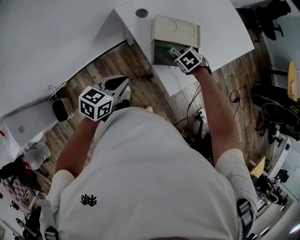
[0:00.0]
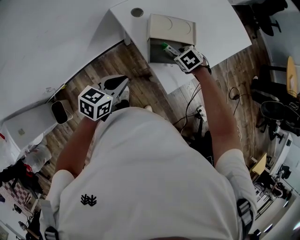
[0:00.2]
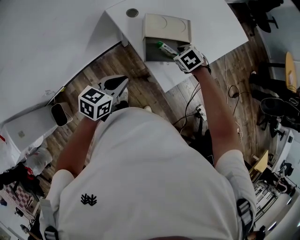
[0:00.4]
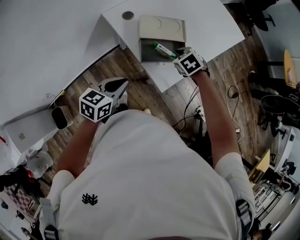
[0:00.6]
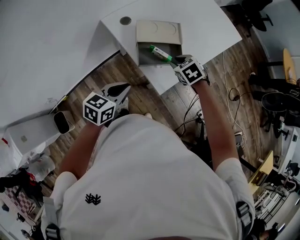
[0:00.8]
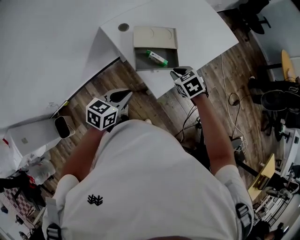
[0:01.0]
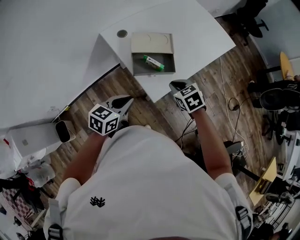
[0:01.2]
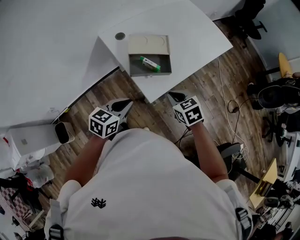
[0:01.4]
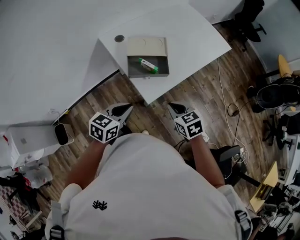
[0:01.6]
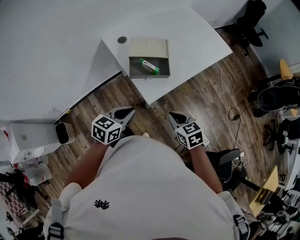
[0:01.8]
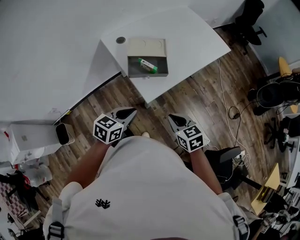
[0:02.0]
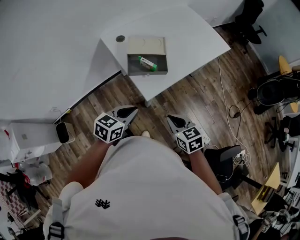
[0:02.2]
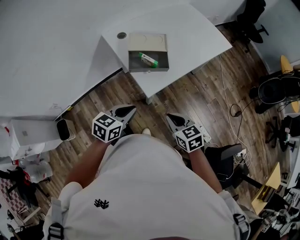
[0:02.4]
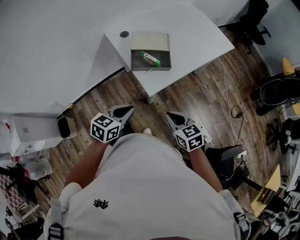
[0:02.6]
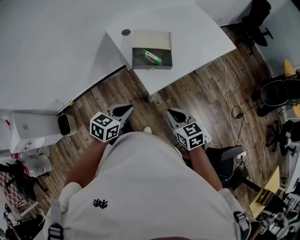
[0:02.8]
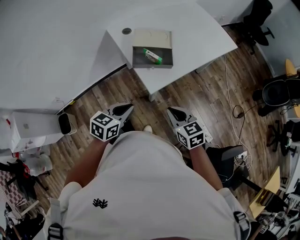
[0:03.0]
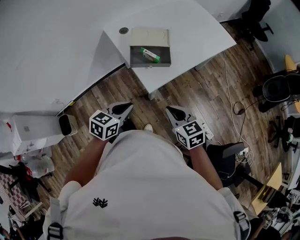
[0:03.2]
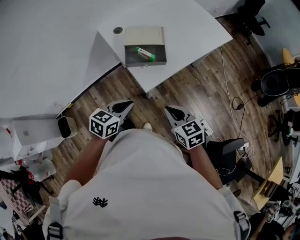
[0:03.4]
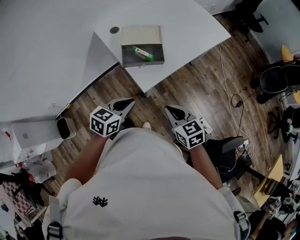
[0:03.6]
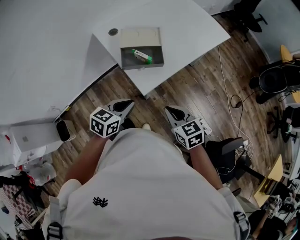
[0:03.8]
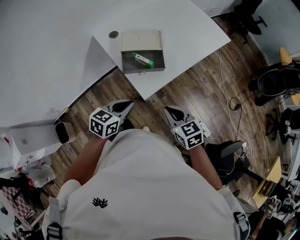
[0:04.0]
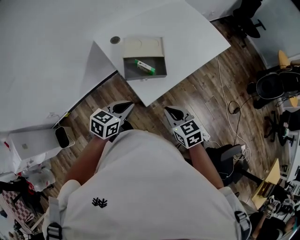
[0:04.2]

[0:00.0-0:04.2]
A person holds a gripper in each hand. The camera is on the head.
0:00.0 to 0:01.4: The left gripper shifts by about 15 cm. Meanwhile the right gripper shifts by approximately 20 cm, turns by some 30 degrees, and closes up.
0:01.4 to 0:02.8: The right gripper travels backward by some 10 cm. The left gripper travels backward by approximately 10 cm.
0:02.8 to 0:04.2: Both grippers move forward, about 5 cm.

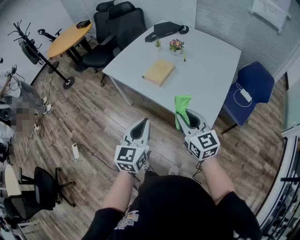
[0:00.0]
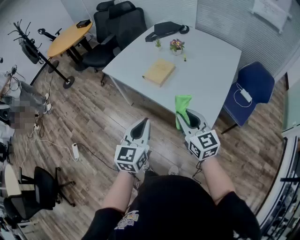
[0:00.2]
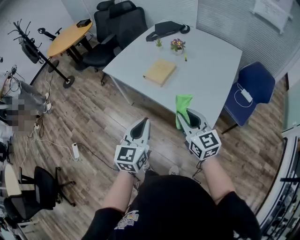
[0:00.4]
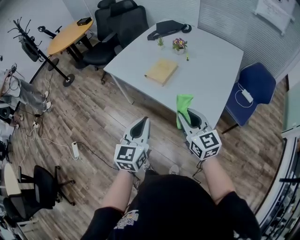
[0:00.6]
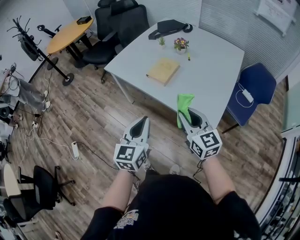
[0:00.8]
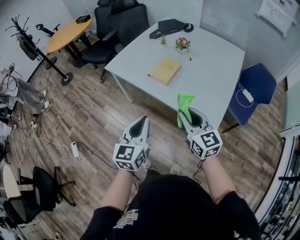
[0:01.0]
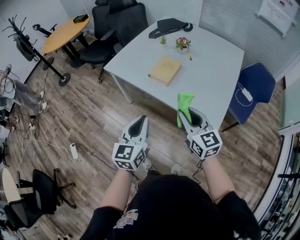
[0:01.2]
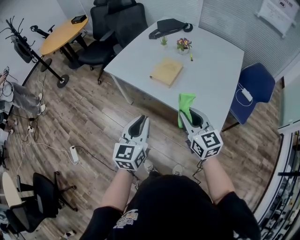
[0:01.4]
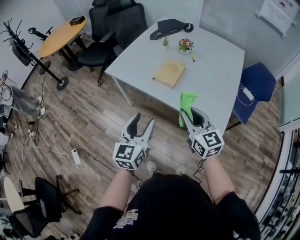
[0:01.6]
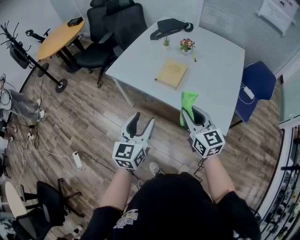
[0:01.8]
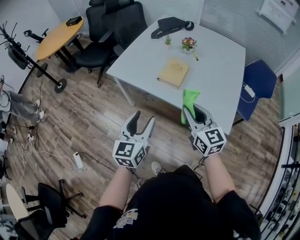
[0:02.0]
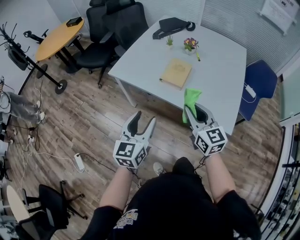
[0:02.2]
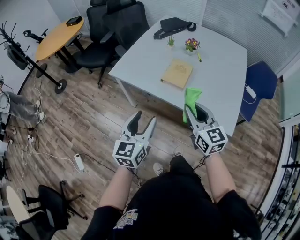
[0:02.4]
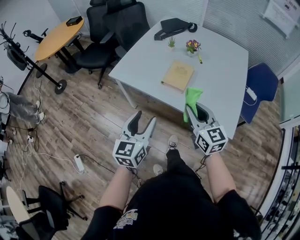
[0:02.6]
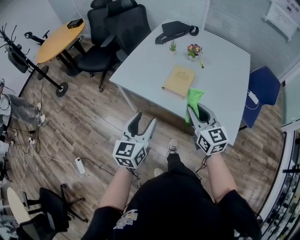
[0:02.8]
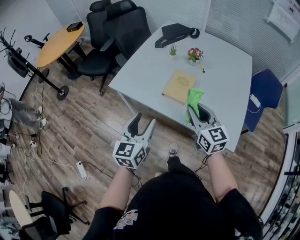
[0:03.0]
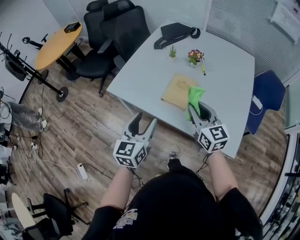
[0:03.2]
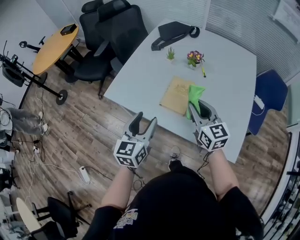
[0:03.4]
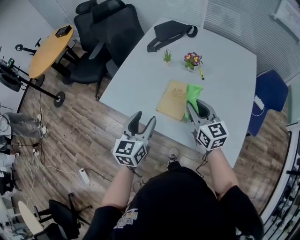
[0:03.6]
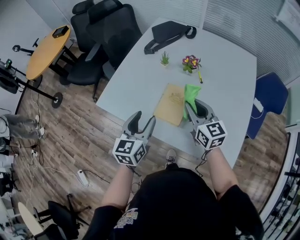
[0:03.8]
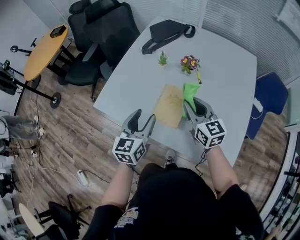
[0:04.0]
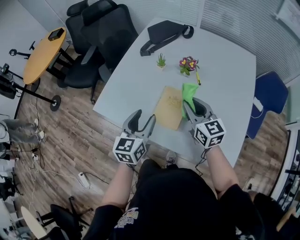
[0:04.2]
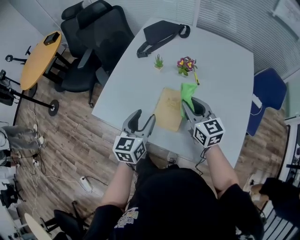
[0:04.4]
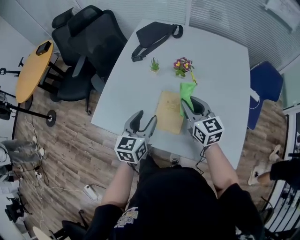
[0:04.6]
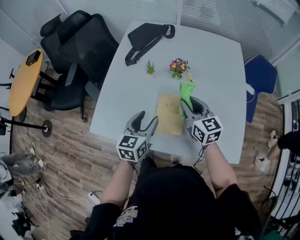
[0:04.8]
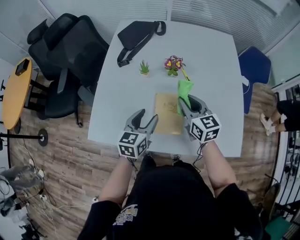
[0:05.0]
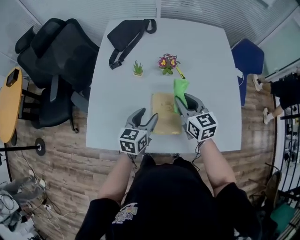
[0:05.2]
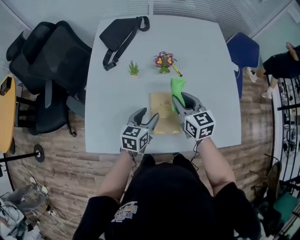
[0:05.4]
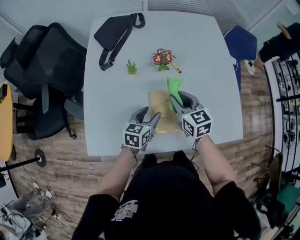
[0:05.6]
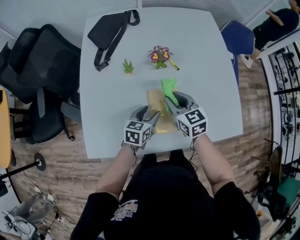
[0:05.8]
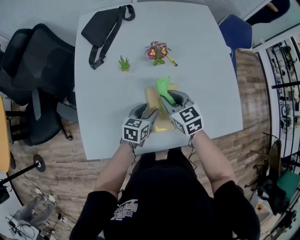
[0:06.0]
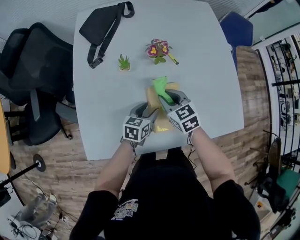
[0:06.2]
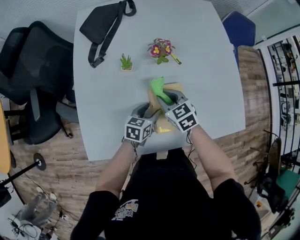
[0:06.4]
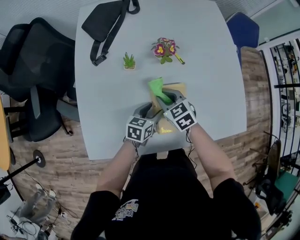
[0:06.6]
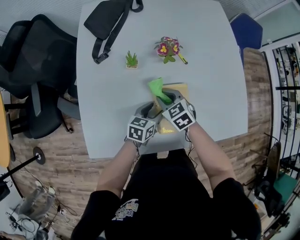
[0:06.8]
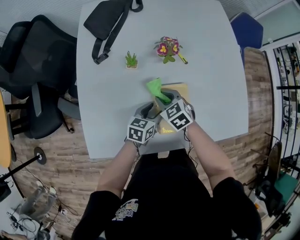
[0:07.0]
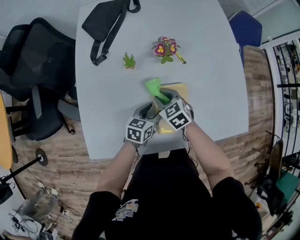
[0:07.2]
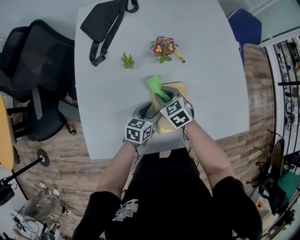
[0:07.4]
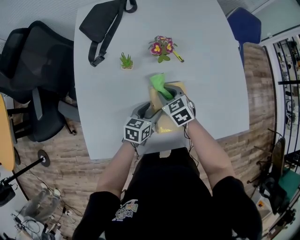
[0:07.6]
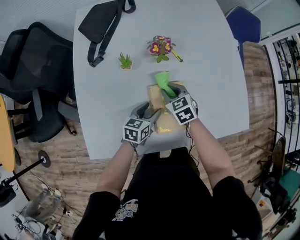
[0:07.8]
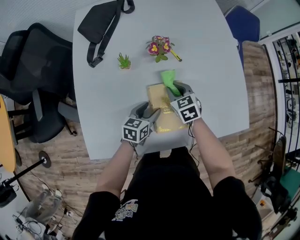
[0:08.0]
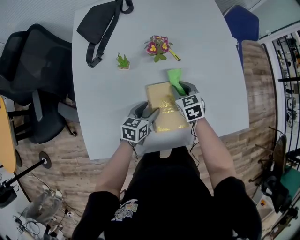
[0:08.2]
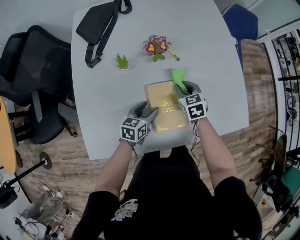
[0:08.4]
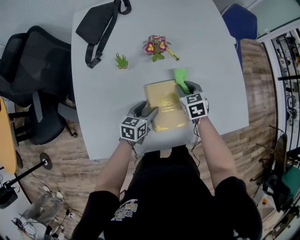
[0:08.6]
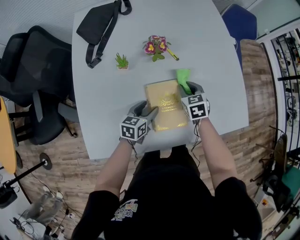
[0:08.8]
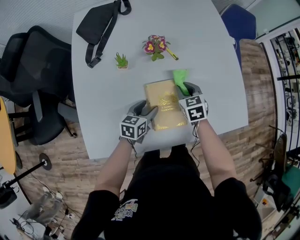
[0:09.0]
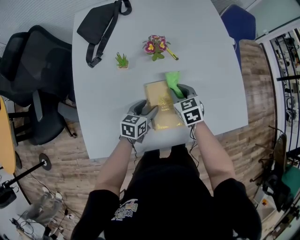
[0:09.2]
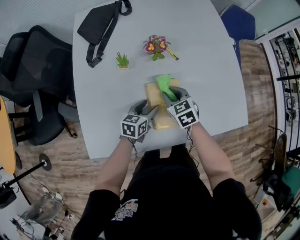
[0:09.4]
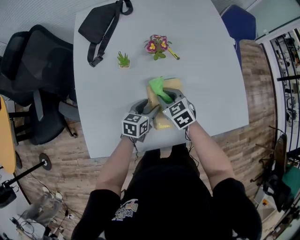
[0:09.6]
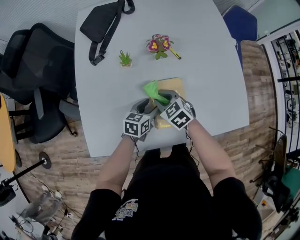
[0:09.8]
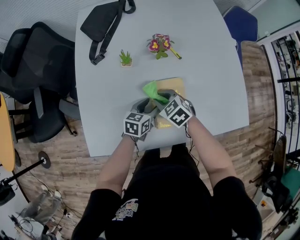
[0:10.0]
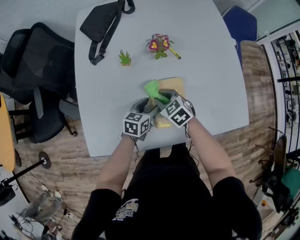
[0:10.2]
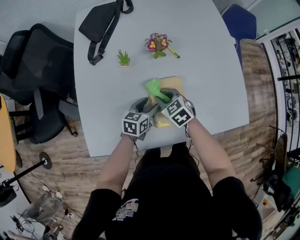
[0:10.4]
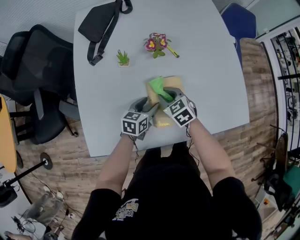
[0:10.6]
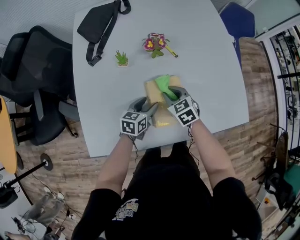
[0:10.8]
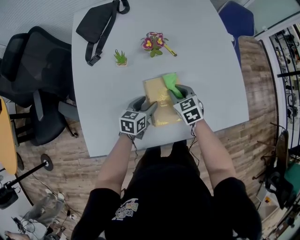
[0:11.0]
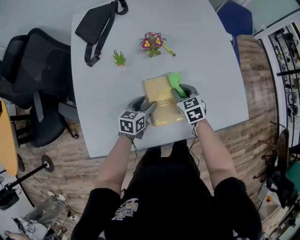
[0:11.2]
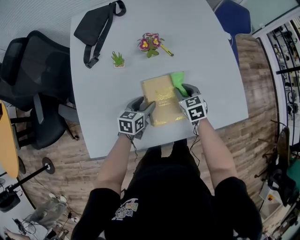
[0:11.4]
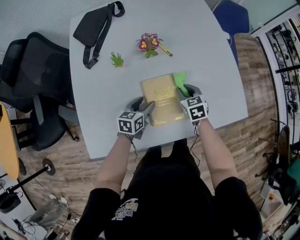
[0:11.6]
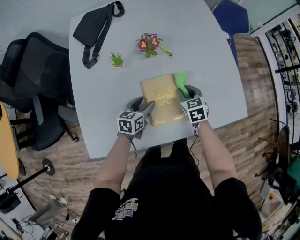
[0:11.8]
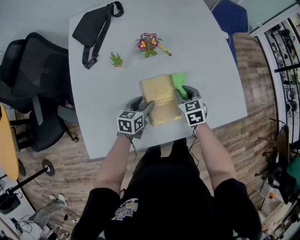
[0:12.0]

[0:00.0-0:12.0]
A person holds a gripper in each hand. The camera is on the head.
0:00.0 to 0:01.6: The grippers both shift to the left and forward by approximately 10 cm. The left gripper opens its fingers.
0:01.6 to 0:03.0: The right gripper shifts some 15 cm forward; the left gripper travels forward and to the left by approximately 15 cm.
0:03.0 to 0:04.4: Both grippers travel together forward, about 20 cm.
0:04.4 to 0:06.0: The right gripper shifts roughly 10 cm downward, and changes its angle by about 30 degrees. Meanwhile the left gripper goes some 20 cm downward, and rotates about 50 degrees.
0:06.0 to 0:07.6: The right gripper heads downward, covering some 10 cm.
0:07.6 to 0:09.0: The right gripper shifts about 10 cm to the right.
0:09.0 to 0:10.4: The right gripper travels to the left and backward by about 10 cm, and changes its angle by some 20 degrees.
0:10.4 to 0:12.0: The right gripper heads to the right, covering roughly 15 cm, and turns by about 30 degrees.

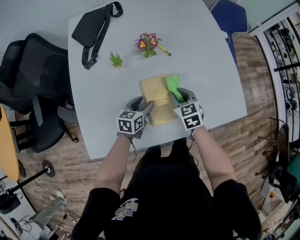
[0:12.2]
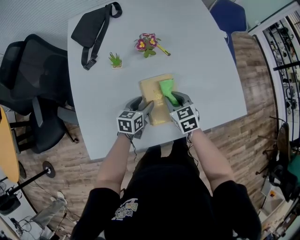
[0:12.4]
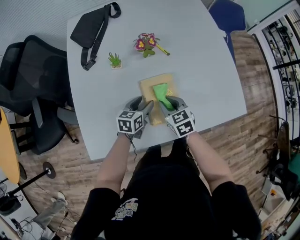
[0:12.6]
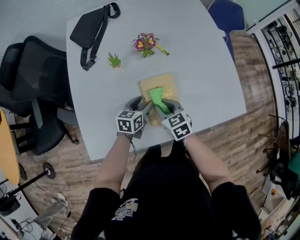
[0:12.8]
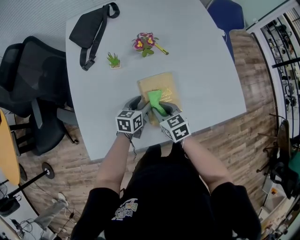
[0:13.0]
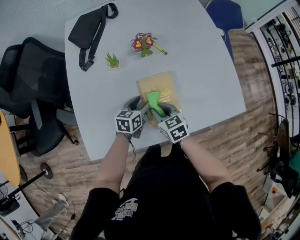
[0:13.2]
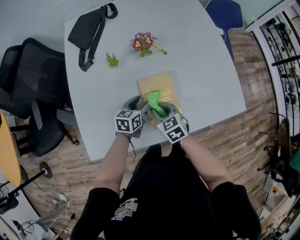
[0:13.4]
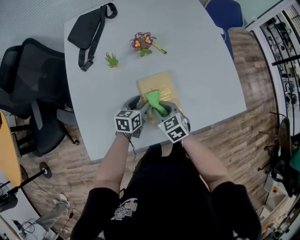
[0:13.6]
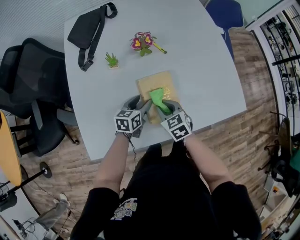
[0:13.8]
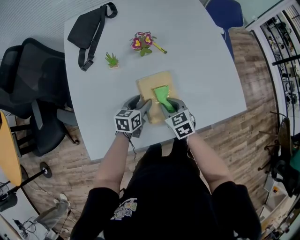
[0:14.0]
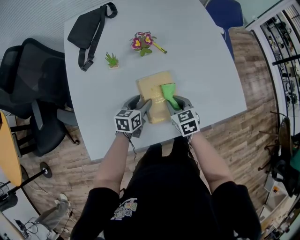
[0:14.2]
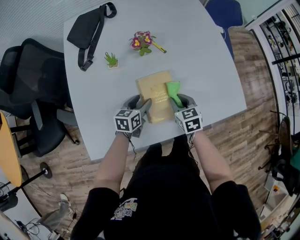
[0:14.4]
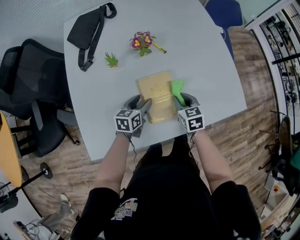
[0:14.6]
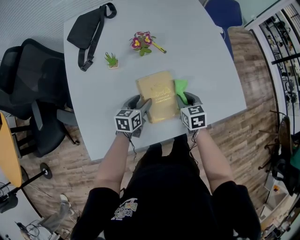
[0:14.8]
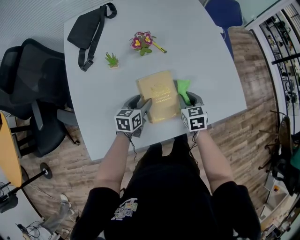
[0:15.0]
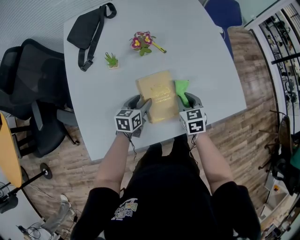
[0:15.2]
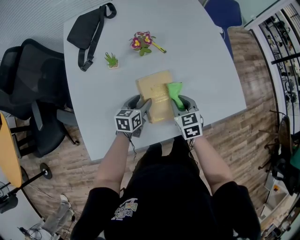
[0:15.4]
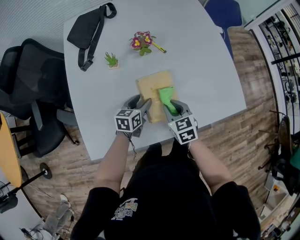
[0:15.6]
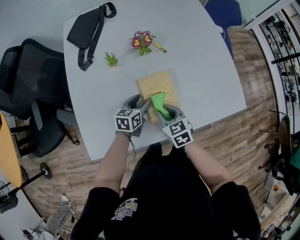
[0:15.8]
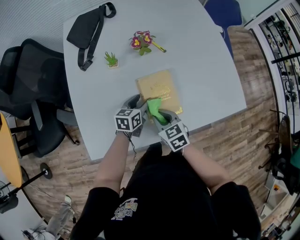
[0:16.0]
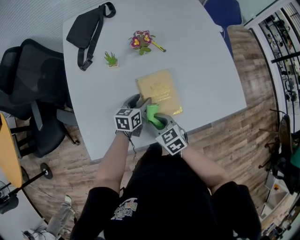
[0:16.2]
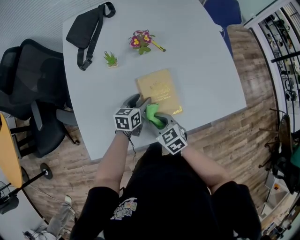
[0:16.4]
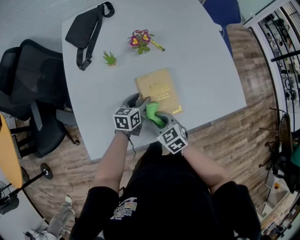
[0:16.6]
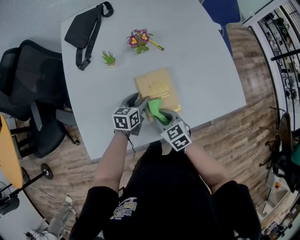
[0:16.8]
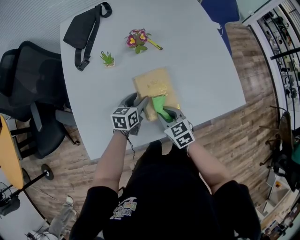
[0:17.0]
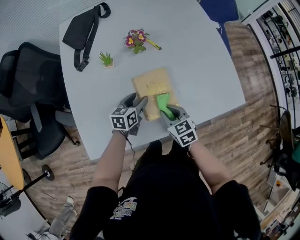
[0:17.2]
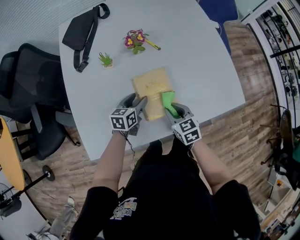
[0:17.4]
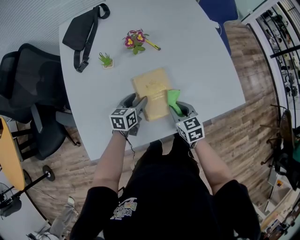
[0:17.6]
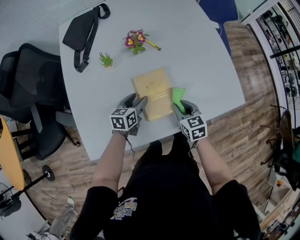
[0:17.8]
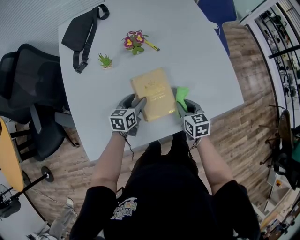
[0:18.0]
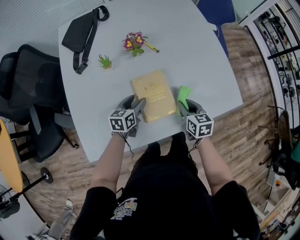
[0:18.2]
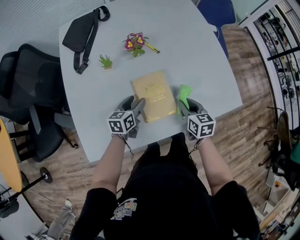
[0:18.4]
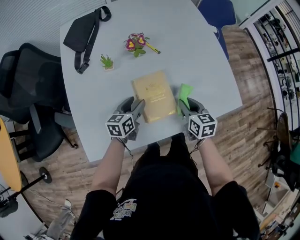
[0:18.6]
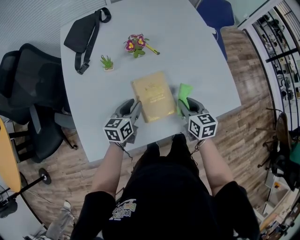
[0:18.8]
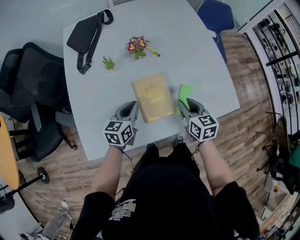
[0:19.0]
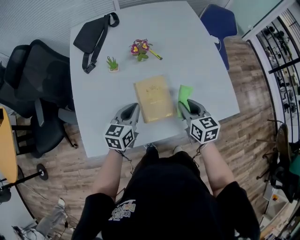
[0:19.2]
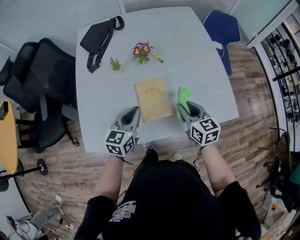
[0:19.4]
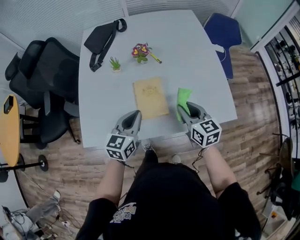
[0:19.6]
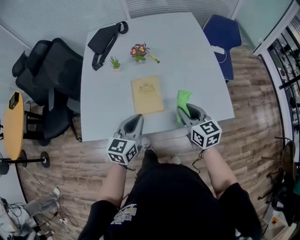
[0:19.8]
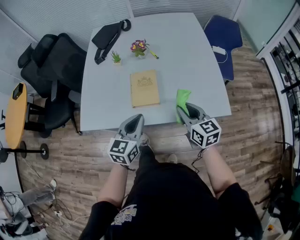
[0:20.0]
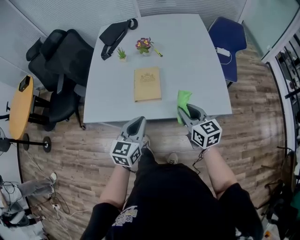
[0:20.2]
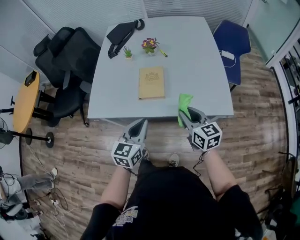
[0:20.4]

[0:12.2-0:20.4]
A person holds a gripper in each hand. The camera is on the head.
0:12.2 to 0:13.8: The right gripper goes some 10 cm backward and to the left.
0:13.8 to 0:15.4: The right gripper goes roughly 5 cm to the right.
0:15.4 to 0:17.2: The right gripper is displaced backward by approximately 5 cm, and goes to the left and returns, approximately 10 cm each way.
0:17.2 to 0:18.8: The right gripper heads to the right, upward and forward, covering approximately 10 cm. Meanwhile the left gripper goes roughly 5 cm upward, and closes.
0:18.8 to 0:20.4: The right gripper changes place by approximately 20 cm, and turns by about 30 degrees. Meanwhile the left gripper shifts by some 35 cm, swivels approximately 30 degrees, and closes its fingers.
